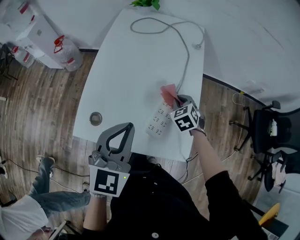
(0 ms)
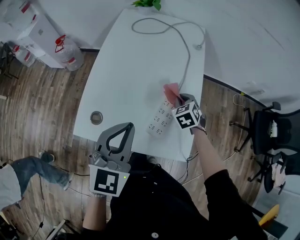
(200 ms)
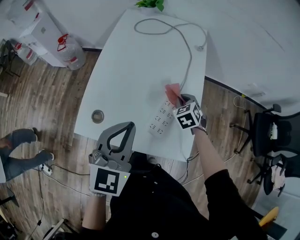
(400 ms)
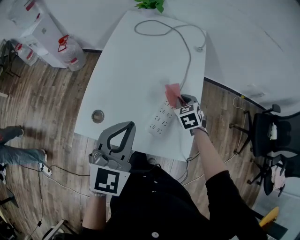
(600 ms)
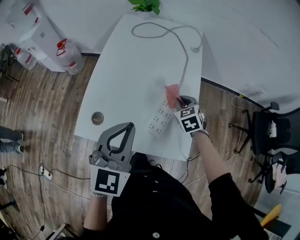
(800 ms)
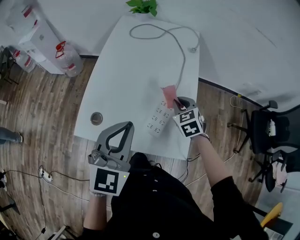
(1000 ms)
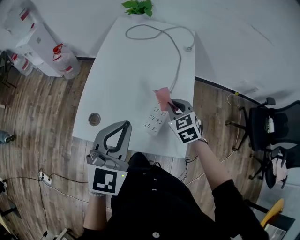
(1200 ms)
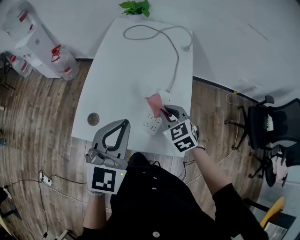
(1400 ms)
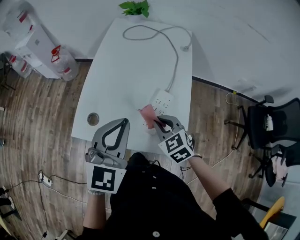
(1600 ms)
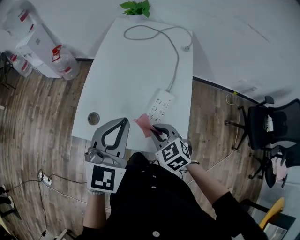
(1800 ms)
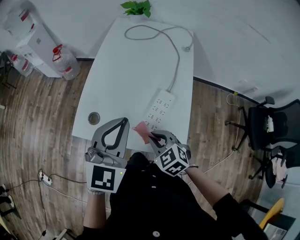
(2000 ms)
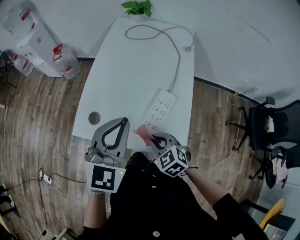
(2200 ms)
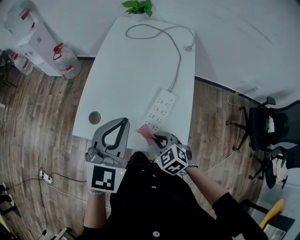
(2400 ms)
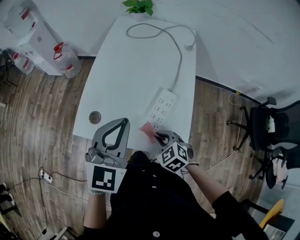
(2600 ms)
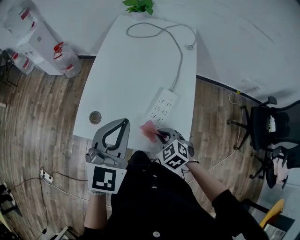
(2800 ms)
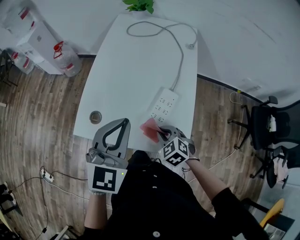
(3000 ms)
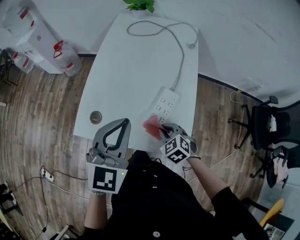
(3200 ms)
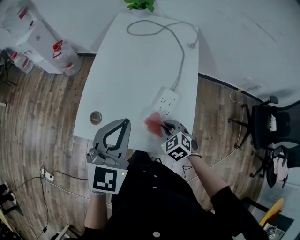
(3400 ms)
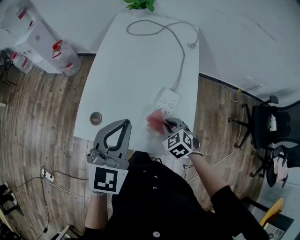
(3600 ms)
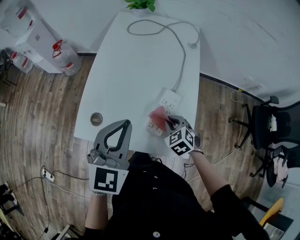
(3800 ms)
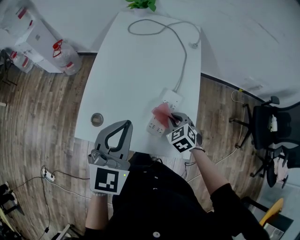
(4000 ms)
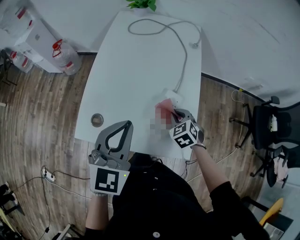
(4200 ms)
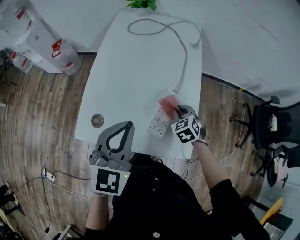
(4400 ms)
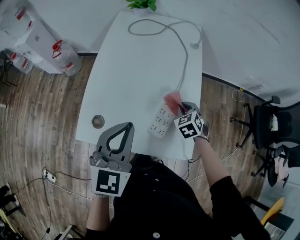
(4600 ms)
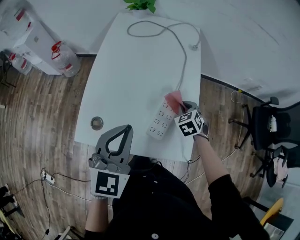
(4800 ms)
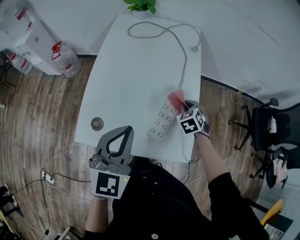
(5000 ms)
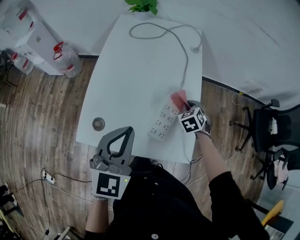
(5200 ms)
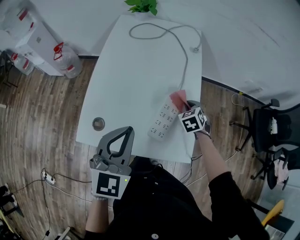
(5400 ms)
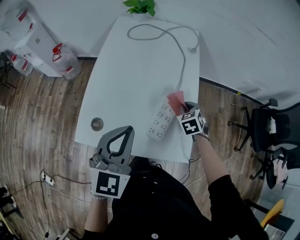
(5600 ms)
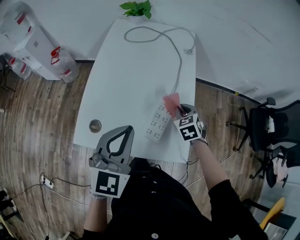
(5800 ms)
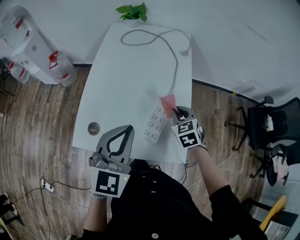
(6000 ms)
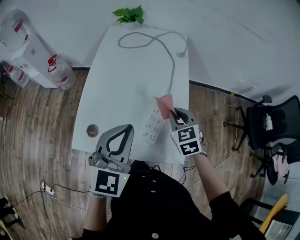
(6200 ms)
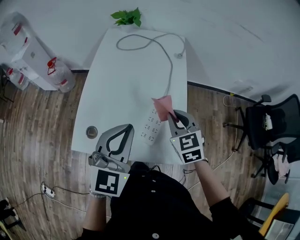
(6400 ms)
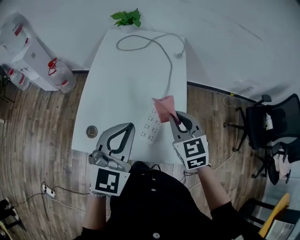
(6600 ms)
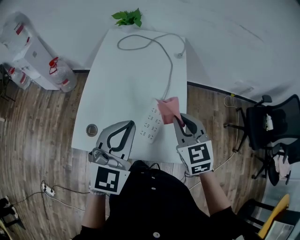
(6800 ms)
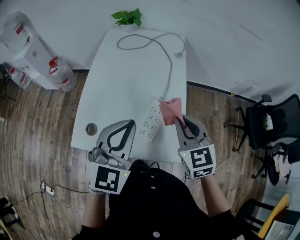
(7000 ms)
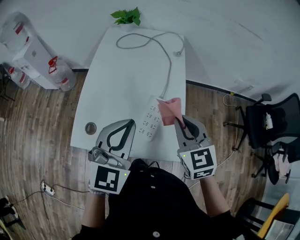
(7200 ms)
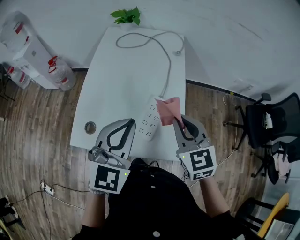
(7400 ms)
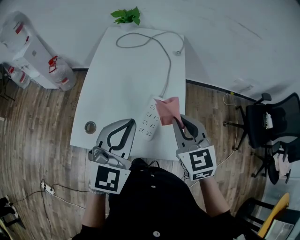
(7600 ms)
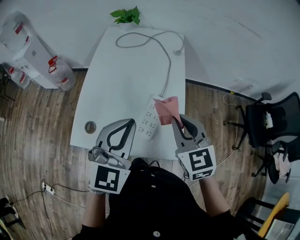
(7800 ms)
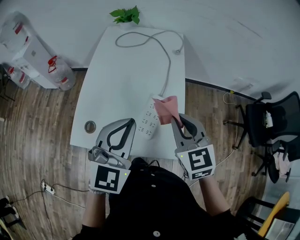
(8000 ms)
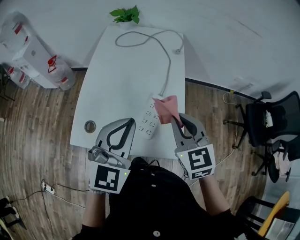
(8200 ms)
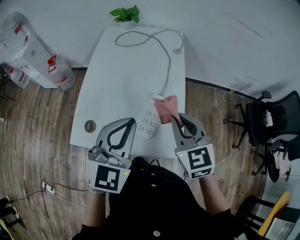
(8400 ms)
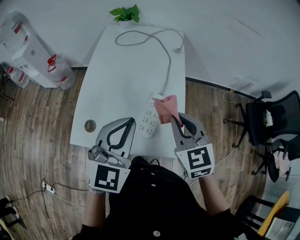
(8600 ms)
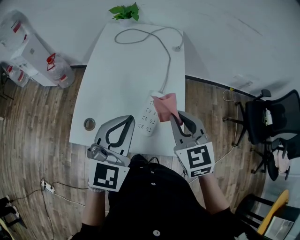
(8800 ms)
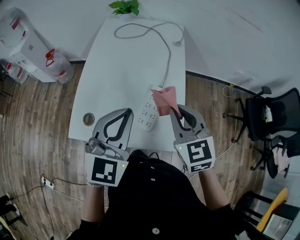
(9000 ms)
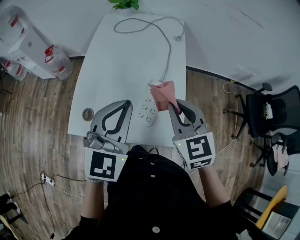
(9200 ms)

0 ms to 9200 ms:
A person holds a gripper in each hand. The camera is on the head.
0 ms to 1600 ms: The right gripper travels backward, upward and to the left by about 20 cm.
1600 ms to 3000 ms: The right gripper is displaced downward by about 10 cm.
3000 ms to 4600 ms: The right gripper travels forward and to the right by about 15 cm, and turns by roughly 20 degrees.
4600 ms to 6200 ms: The right gripper shifts about 10 cm upward, and changes its angle by roughly 20 degrees.
6200 ms to 7600 ms: The right gripper shifts some 15 cm upward and backward.
7600 ms to 9200 ms: The grippers stay close to where they were, moving slightly.

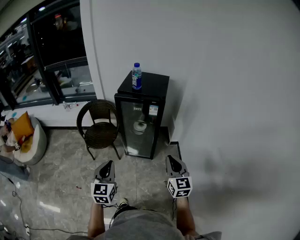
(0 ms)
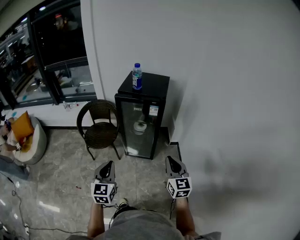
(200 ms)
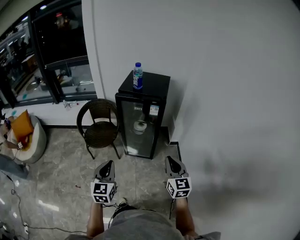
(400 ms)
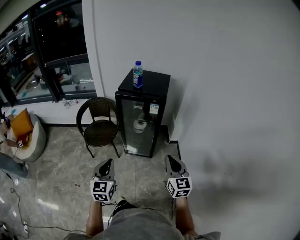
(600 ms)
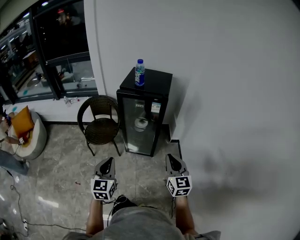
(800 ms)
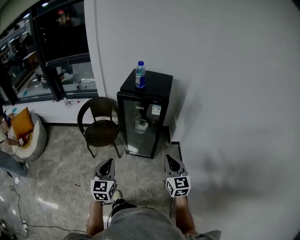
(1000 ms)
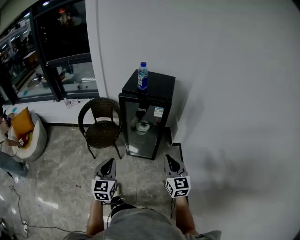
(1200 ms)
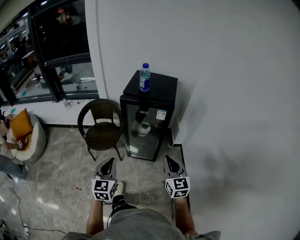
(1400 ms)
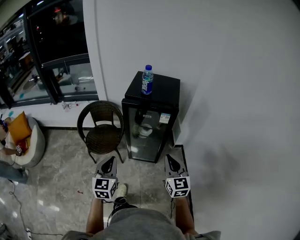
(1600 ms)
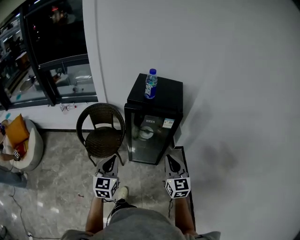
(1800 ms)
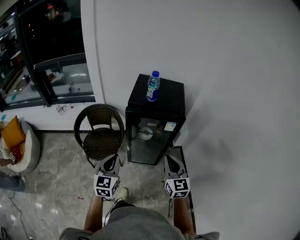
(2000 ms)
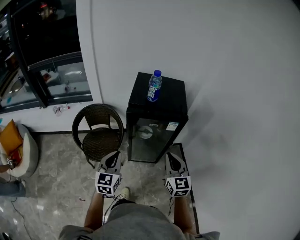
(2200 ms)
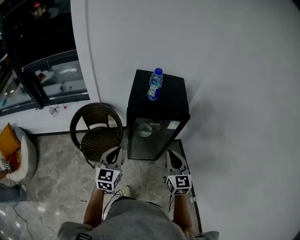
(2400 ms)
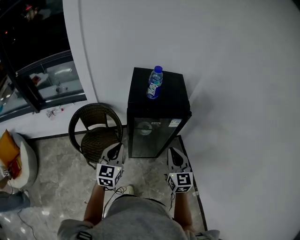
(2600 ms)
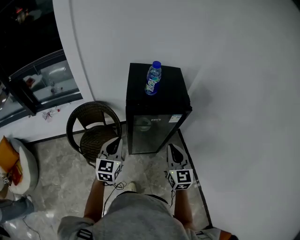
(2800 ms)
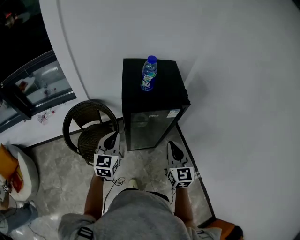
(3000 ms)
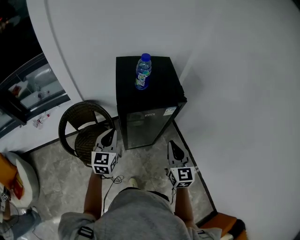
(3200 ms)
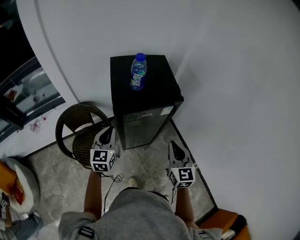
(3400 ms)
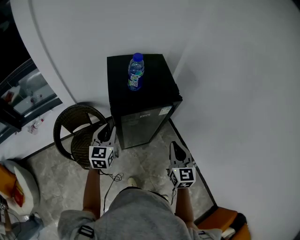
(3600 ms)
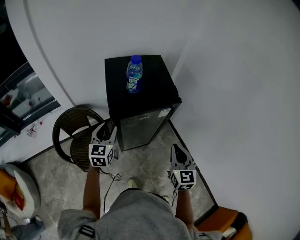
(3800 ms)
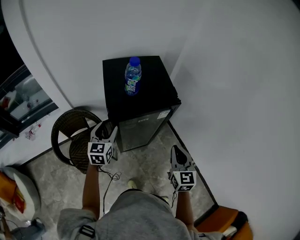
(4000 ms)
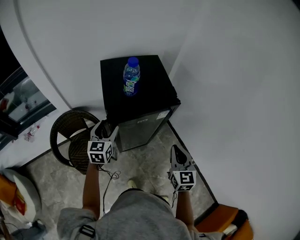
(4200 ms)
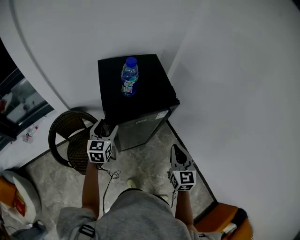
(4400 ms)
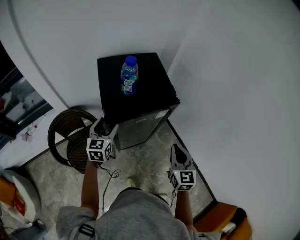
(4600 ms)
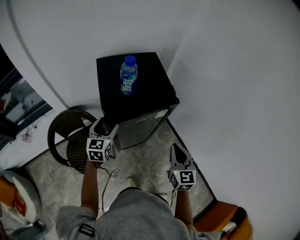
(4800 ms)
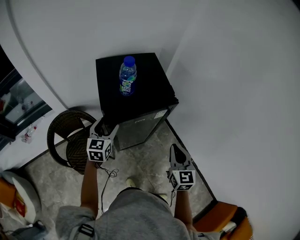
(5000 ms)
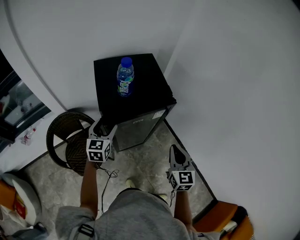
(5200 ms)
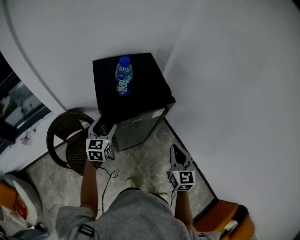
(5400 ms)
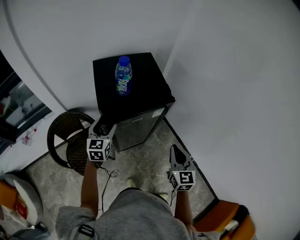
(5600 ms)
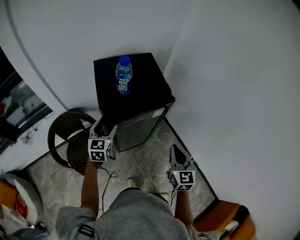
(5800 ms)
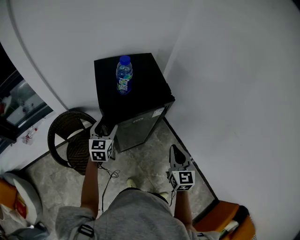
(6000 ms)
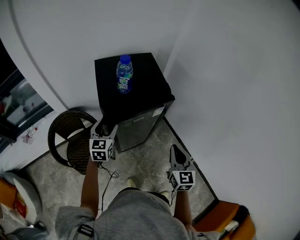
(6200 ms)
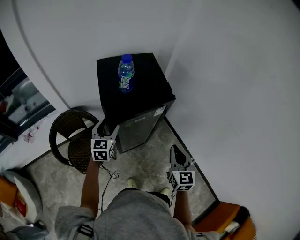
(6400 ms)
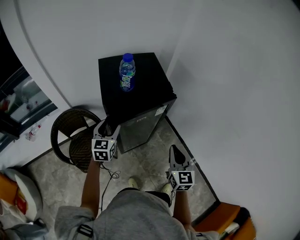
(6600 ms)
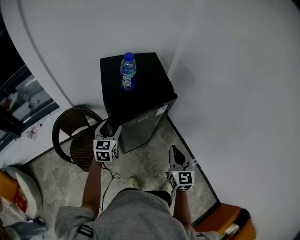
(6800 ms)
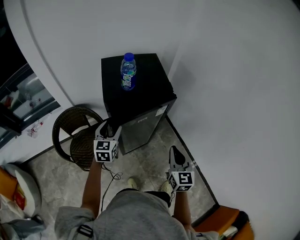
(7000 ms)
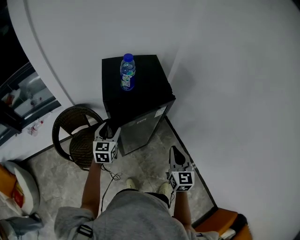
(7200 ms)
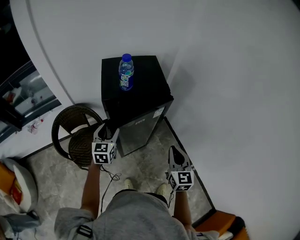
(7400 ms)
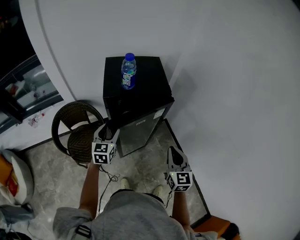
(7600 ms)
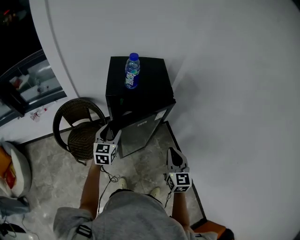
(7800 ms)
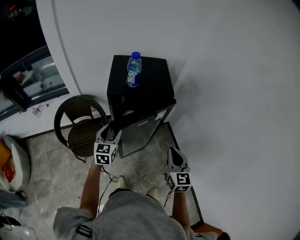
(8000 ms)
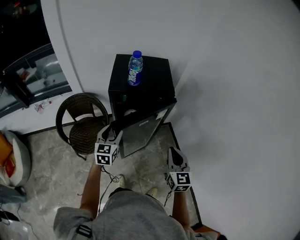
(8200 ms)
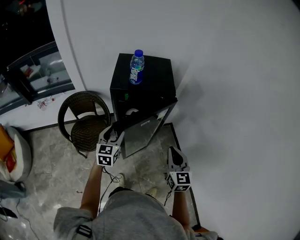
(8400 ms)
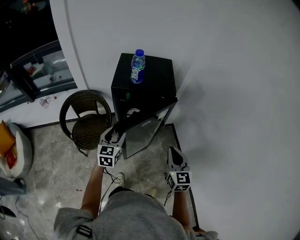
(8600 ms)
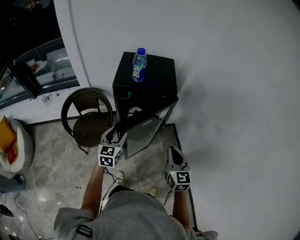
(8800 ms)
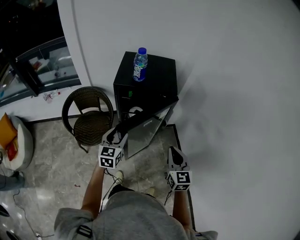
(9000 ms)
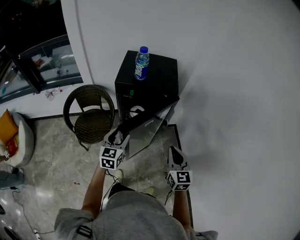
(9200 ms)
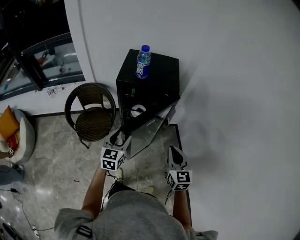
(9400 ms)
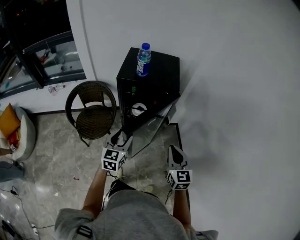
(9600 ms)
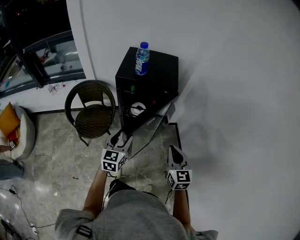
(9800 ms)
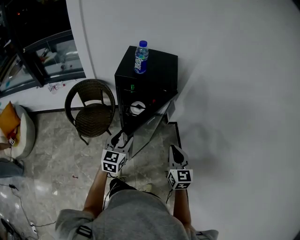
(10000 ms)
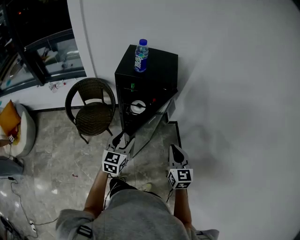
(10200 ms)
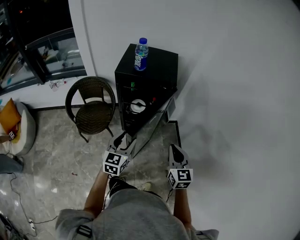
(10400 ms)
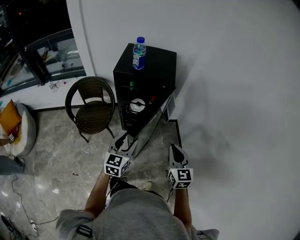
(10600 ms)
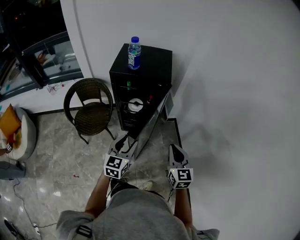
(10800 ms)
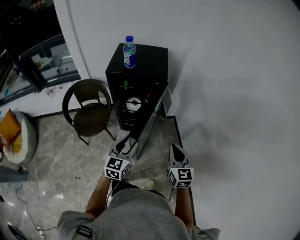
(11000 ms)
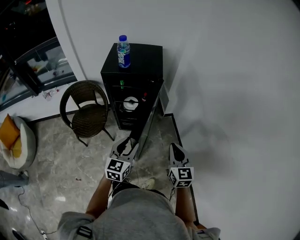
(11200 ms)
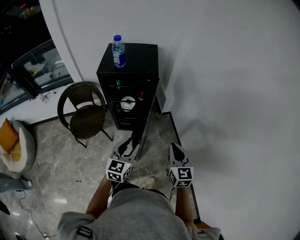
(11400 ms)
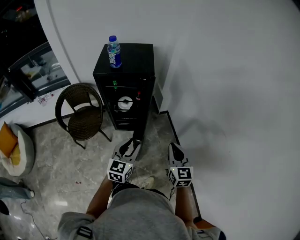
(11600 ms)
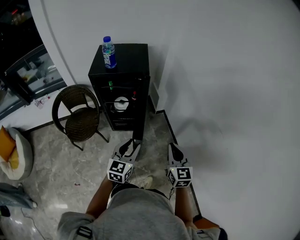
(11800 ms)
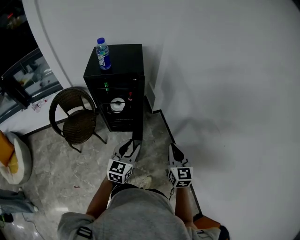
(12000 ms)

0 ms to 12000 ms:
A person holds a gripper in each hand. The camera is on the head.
0 ms to 1600 ms: The grippers both shift forward and to the left by roughly 15 cm.
1600 ms to 3000 ms: The left gripper goes about 25 cm forward, and swivels approximately 20 degrees, while the right gripper moves forward and to the left, about 15 cm, and turns by approximately 20 degrees.
3000 ms to 4400 ms: The right gripper moves to the right, approximately 5 cm; the left gripper goes approximately 15 cm forward, and opens up.
4400 ms to 6000 ms: The grippers make only small movements.
6000 ms to 7600 ms: The left gripper shifts approximately 10 cm backward.
7600 ms to 9000 ms: The left gripper is displaced backward and to the right by about 10 cm.
9000 ms to 10400 ms: The left gripper moves backward and to the right, about 10 cm, while the right gripper shifts by some 5 cm.
10400 ms to 12000 ms: The right gripper travels to the right and backward by approximately 10 cm. The left gripper goes about 15 cm to the right.

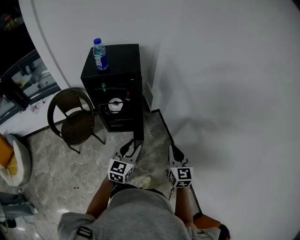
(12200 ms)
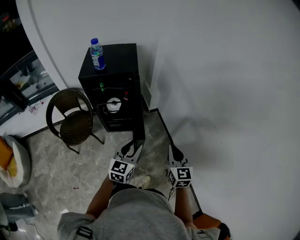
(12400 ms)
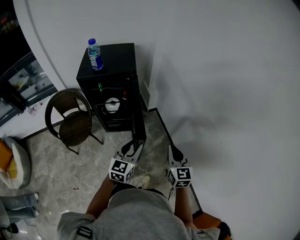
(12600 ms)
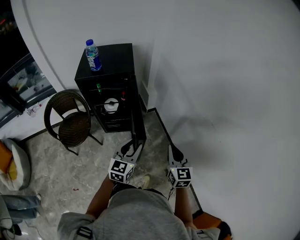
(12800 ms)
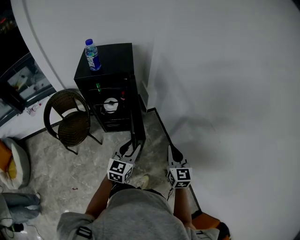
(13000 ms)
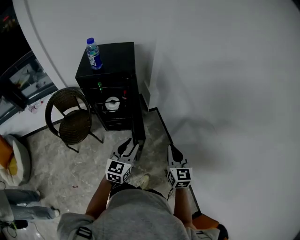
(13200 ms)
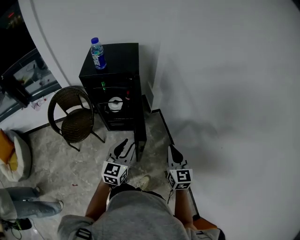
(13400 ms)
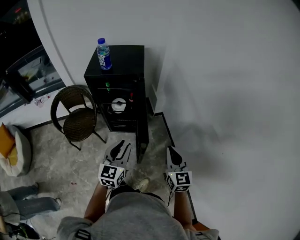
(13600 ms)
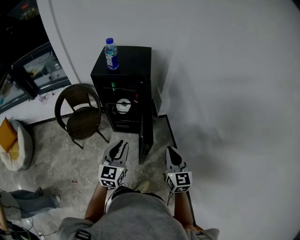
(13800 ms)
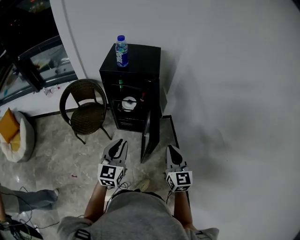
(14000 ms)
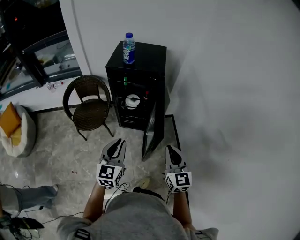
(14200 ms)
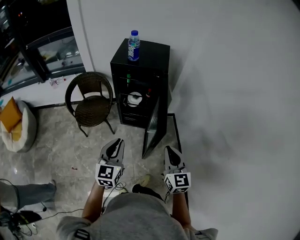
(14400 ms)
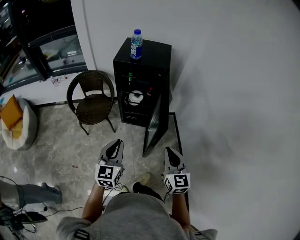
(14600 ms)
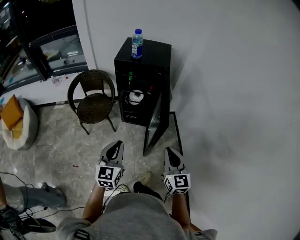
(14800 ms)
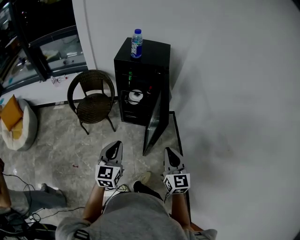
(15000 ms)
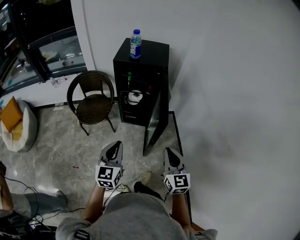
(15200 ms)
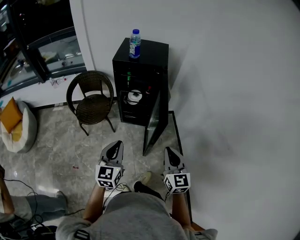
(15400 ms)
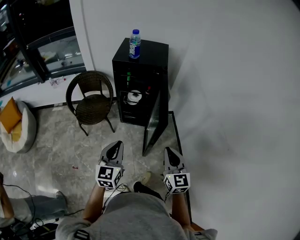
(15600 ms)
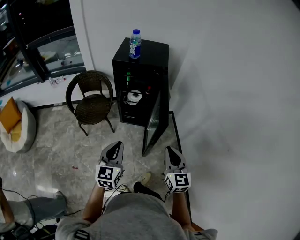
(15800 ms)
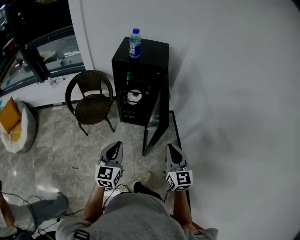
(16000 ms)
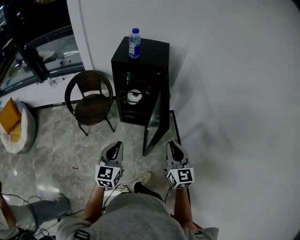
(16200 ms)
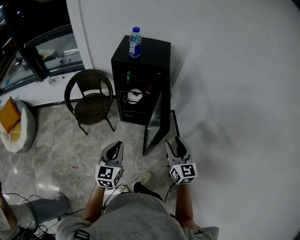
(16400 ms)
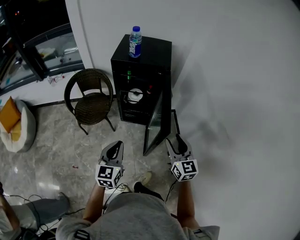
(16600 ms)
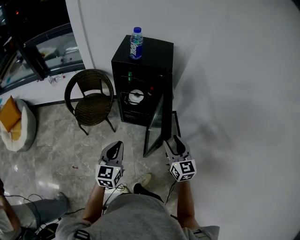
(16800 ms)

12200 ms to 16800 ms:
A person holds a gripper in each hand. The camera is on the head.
12200 ms to 13800 ms: The left gripper heads to the left, covering about 5 cm.
13800 ms to 15200 ms: Both grippers travel together backward and to the left, roughly 15 cm.
15200 ms to 16800 ms: The left gripper moves forward, some 5 cm. The right gripper goes about 10 cm forward, and opens up.
